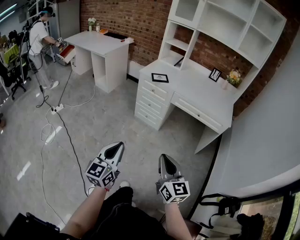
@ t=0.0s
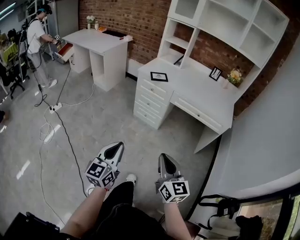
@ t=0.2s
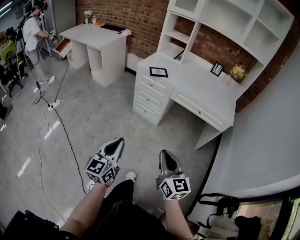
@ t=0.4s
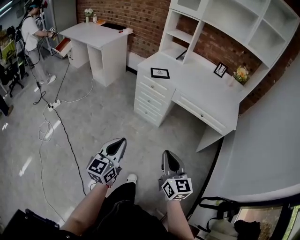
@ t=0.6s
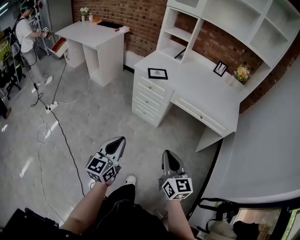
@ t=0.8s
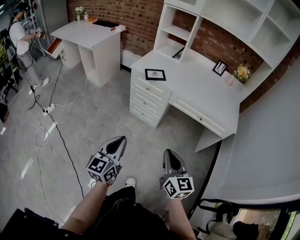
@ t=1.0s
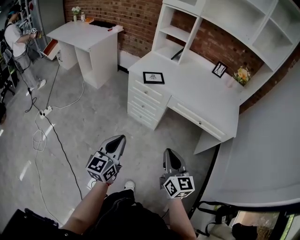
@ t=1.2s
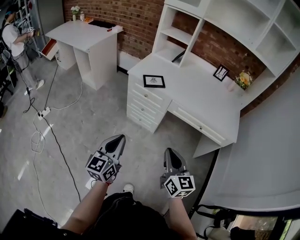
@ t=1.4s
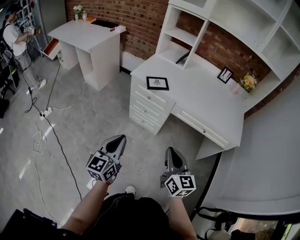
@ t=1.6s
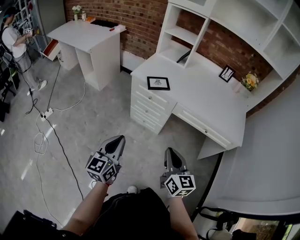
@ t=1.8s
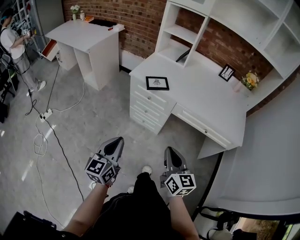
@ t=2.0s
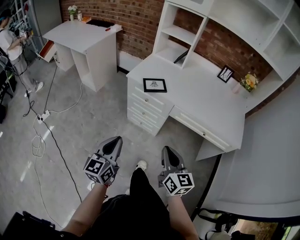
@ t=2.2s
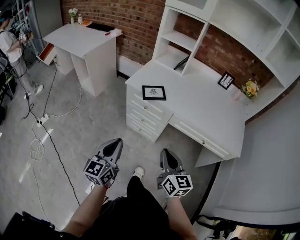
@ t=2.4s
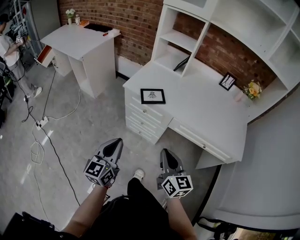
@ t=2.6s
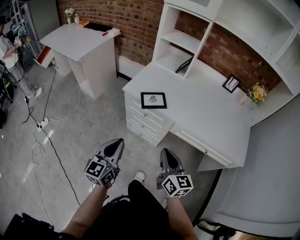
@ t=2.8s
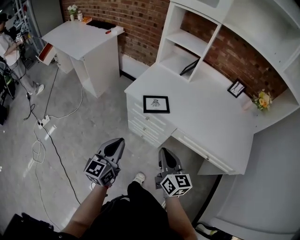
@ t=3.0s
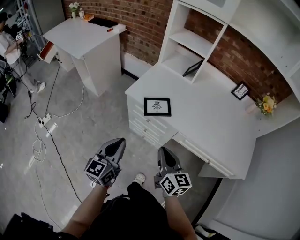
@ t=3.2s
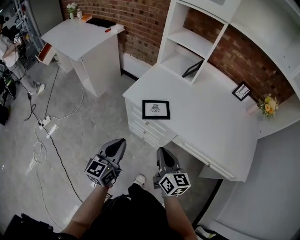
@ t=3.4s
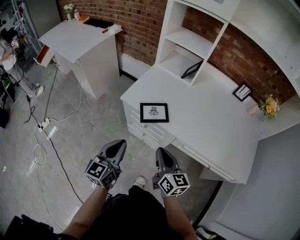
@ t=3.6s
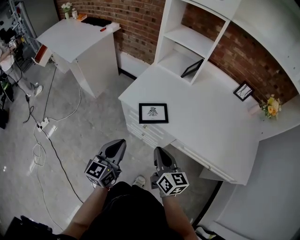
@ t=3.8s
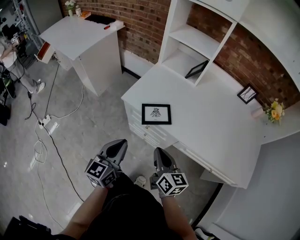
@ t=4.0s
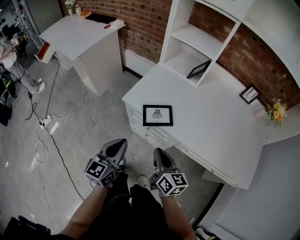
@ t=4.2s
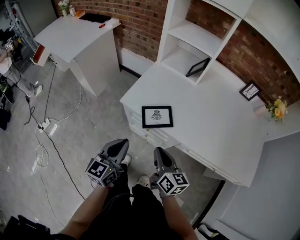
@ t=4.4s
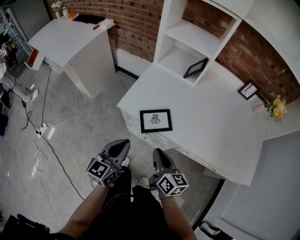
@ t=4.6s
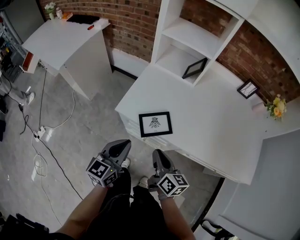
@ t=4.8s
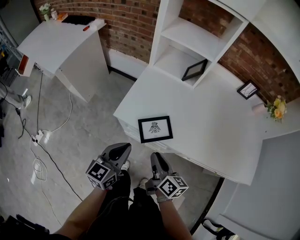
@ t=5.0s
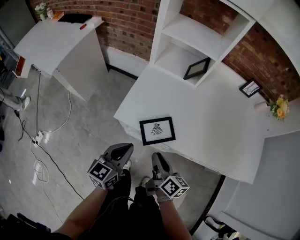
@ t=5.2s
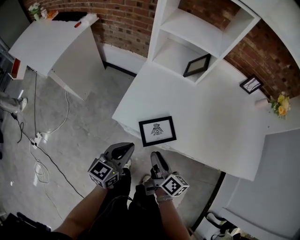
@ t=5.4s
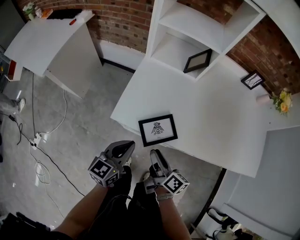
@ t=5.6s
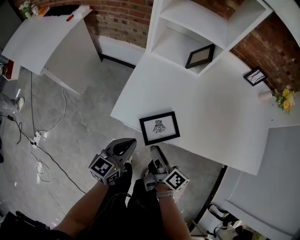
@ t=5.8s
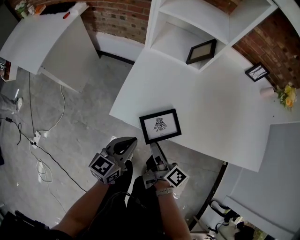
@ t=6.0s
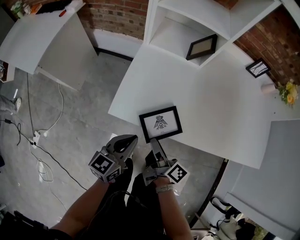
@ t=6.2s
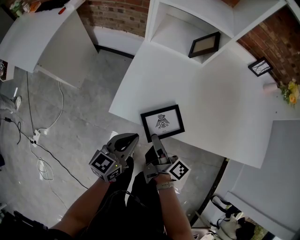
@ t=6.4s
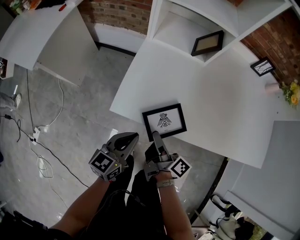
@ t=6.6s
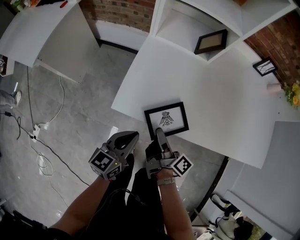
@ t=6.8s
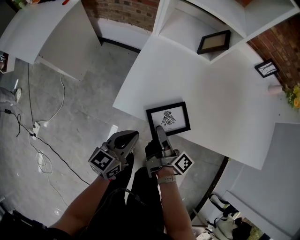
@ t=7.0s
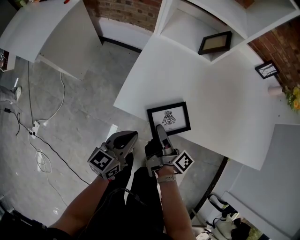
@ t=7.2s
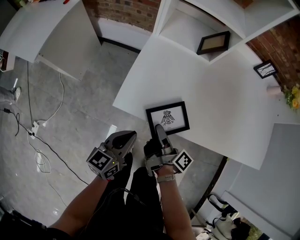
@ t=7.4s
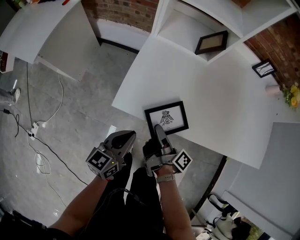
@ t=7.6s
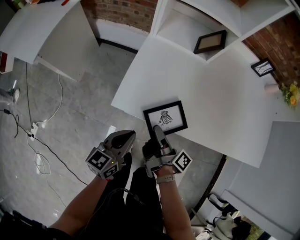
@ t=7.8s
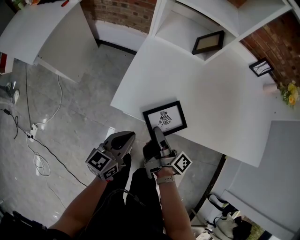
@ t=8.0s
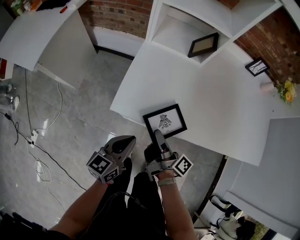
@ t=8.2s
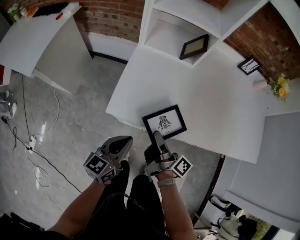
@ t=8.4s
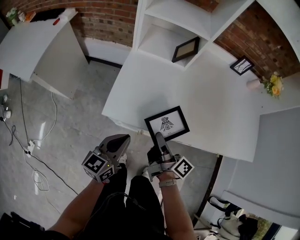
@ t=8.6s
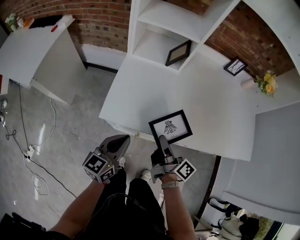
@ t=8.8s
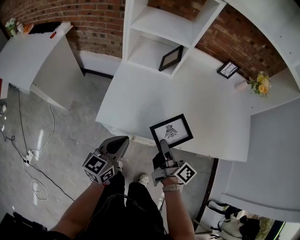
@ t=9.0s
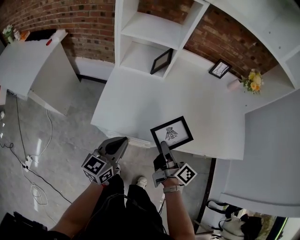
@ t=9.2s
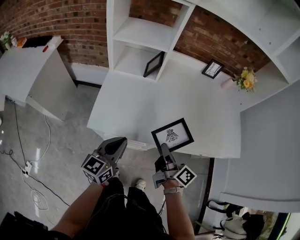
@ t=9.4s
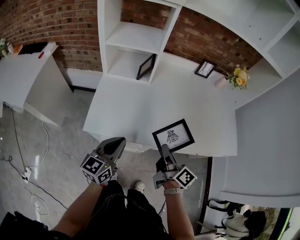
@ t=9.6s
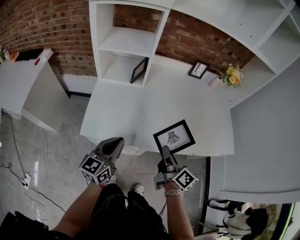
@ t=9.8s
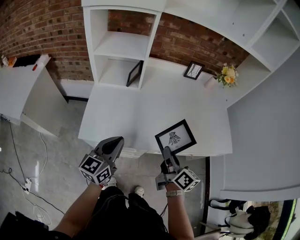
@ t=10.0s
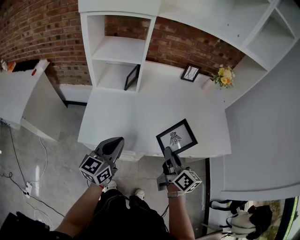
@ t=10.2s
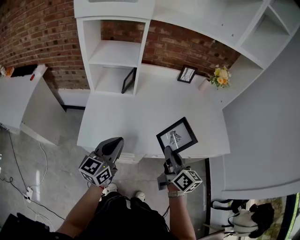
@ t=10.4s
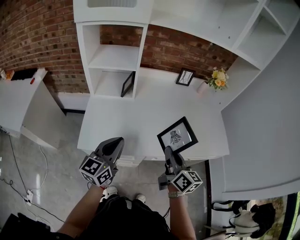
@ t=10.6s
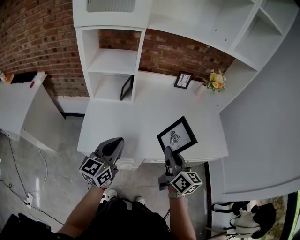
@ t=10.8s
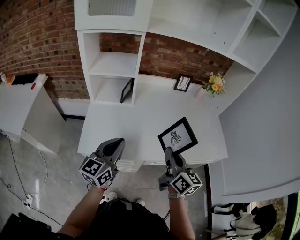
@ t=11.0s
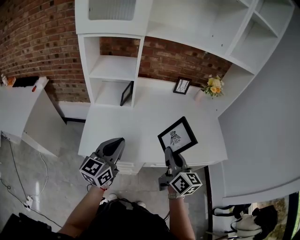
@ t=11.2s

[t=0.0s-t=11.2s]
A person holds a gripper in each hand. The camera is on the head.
t=0.0s to t=1.6s: The two grippers go approximately 30 cm forward.
t=1.6s to t=3.2s: Both grippers move forward, about 20 cm.
t=3.2s to t=4.8s: The left gripper moves forward, approximately 15 cm. The right gripper goes approximately 15 cm forward and downward, and changes its angle by some 20 degrees.
t=4.8s to t=6.4s: The left gripper moves downward and forward, roughly 10 cm. The right gripper moves forward, downward and to the left, some 10 cm, rolls clockwise, seen from behind, by roughly 40 degrees, and opens its fingers.
t=6.4s to t=8.0s: The right gripper closes.
t=8.0s to t=9.6s: The right gripper shifts approximately 25 cm to the right and upward, and swivels approximately 30 degrees, while the left gripper shifts approximately 15 cm upward and to the right.
t=9.6s to t=11.2s: The left gripper shifts approximately 10 cm upward and forward. Meanwhile the right gripper is displaced upward and to the right by some 10 cm, and changes its angle by some 40 degrees.

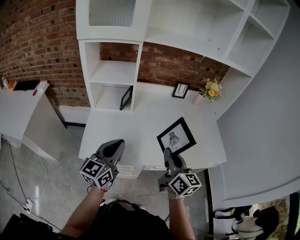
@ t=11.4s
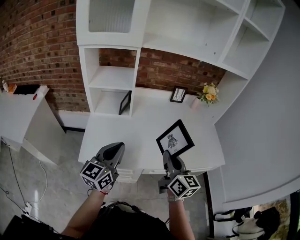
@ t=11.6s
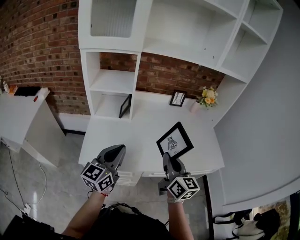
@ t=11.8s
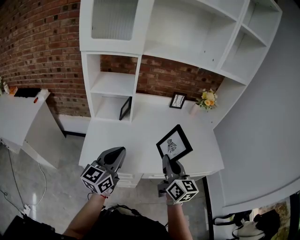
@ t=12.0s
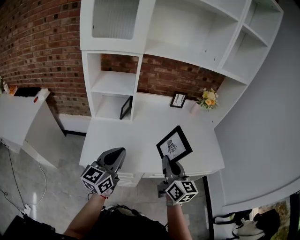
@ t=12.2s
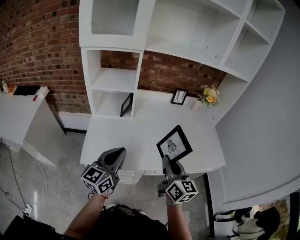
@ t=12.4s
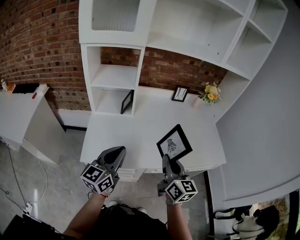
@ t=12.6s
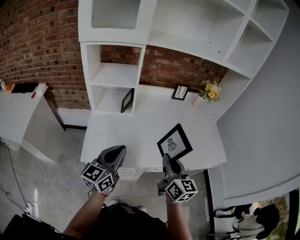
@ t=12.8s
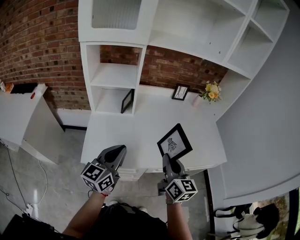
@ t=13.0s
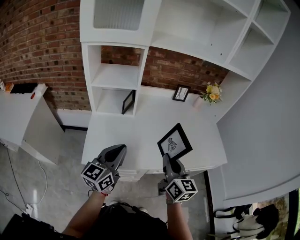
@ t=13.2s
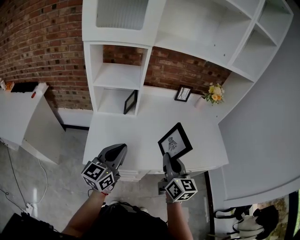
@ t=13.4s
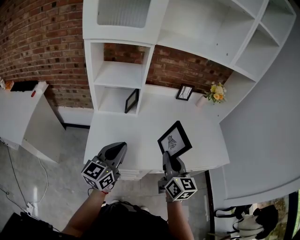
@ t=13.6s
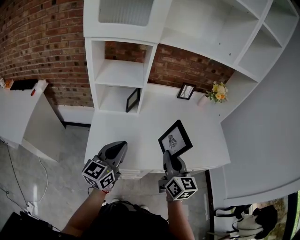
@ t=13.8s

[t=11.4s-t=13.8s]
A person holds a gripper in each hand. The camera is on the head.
t=11.4s to t=12.6s: There are only small adjustments of the grippers.
t=12.6s to t=13.8s: The left gripper shifts by some 5 cm, while the right gripper ends up some 5 cm from where it was.

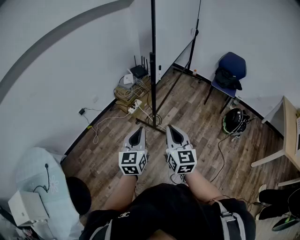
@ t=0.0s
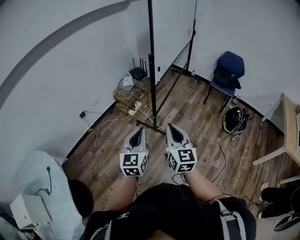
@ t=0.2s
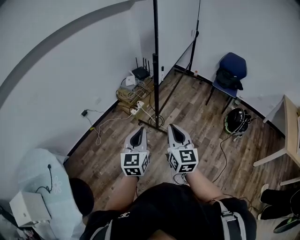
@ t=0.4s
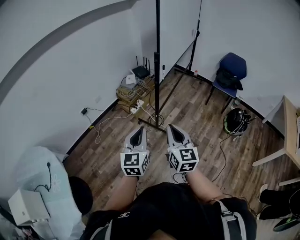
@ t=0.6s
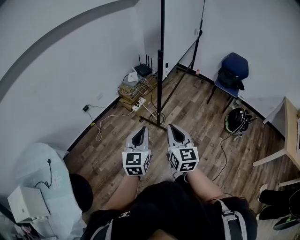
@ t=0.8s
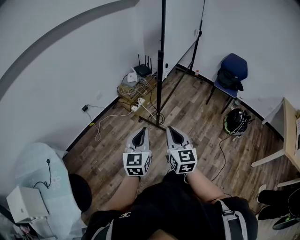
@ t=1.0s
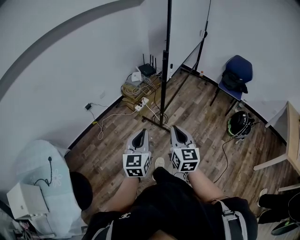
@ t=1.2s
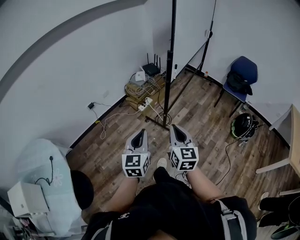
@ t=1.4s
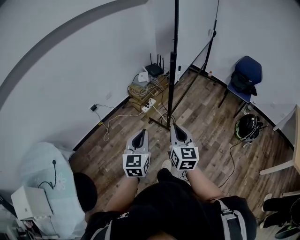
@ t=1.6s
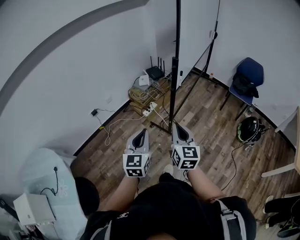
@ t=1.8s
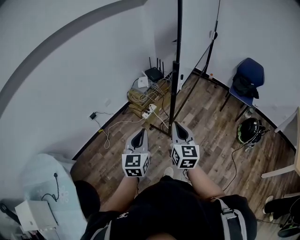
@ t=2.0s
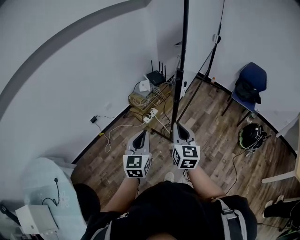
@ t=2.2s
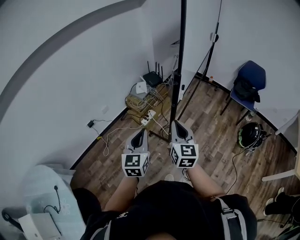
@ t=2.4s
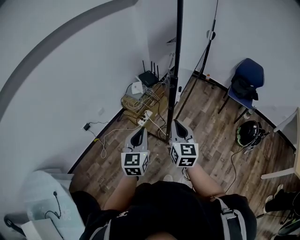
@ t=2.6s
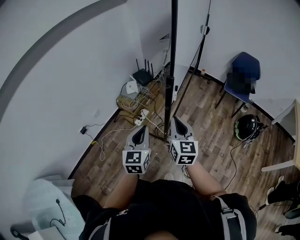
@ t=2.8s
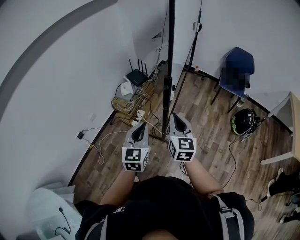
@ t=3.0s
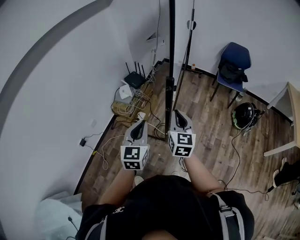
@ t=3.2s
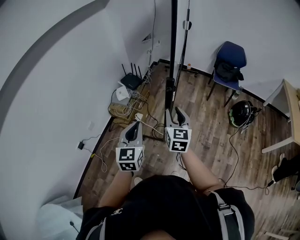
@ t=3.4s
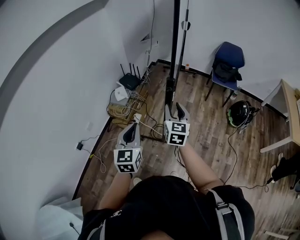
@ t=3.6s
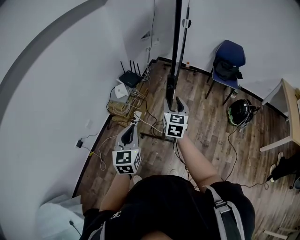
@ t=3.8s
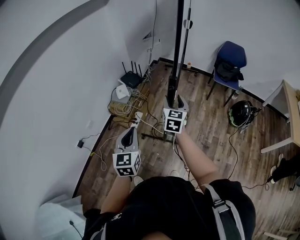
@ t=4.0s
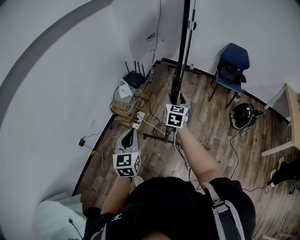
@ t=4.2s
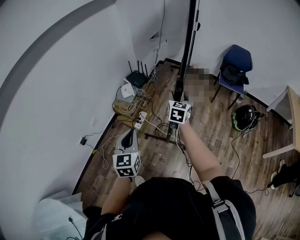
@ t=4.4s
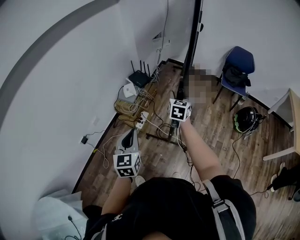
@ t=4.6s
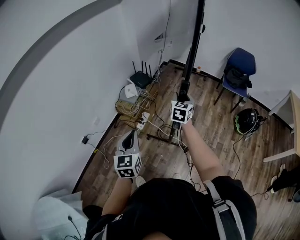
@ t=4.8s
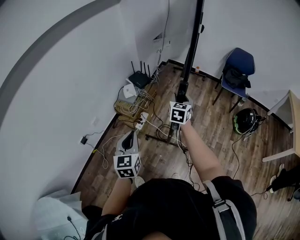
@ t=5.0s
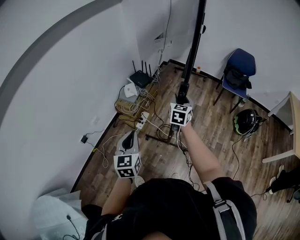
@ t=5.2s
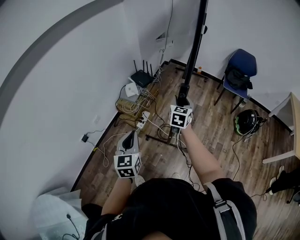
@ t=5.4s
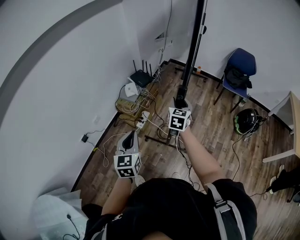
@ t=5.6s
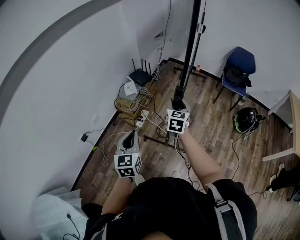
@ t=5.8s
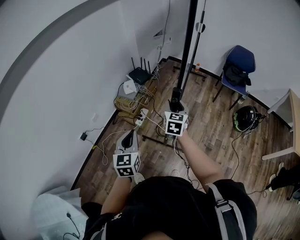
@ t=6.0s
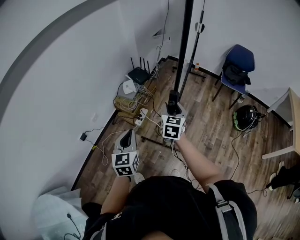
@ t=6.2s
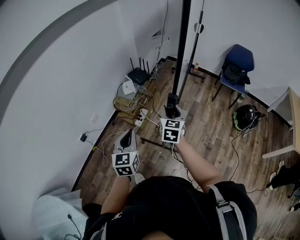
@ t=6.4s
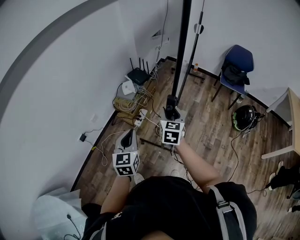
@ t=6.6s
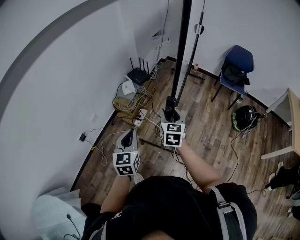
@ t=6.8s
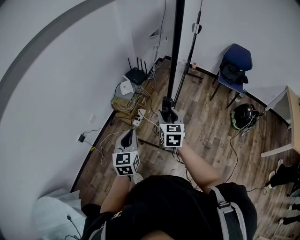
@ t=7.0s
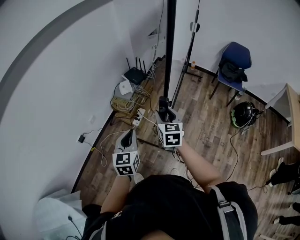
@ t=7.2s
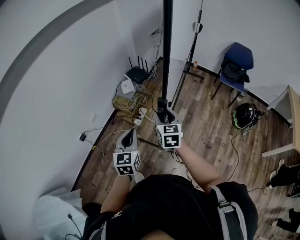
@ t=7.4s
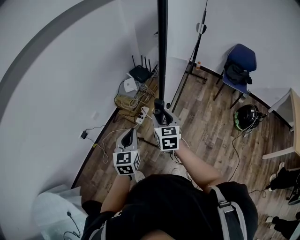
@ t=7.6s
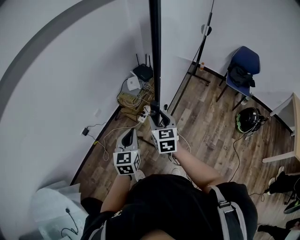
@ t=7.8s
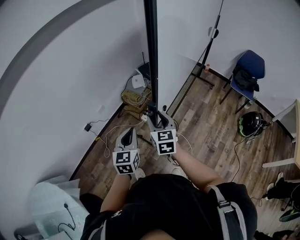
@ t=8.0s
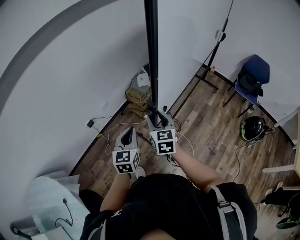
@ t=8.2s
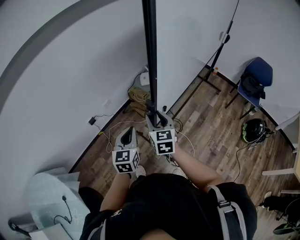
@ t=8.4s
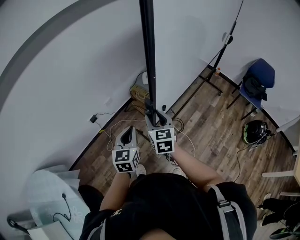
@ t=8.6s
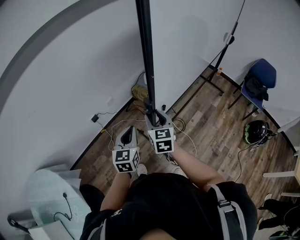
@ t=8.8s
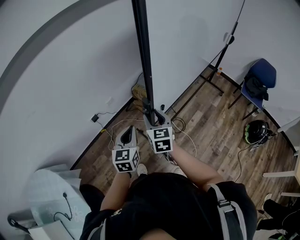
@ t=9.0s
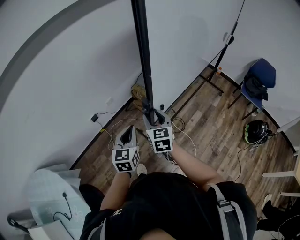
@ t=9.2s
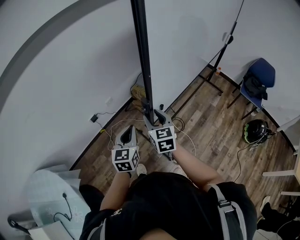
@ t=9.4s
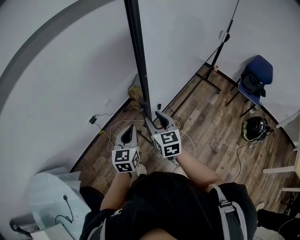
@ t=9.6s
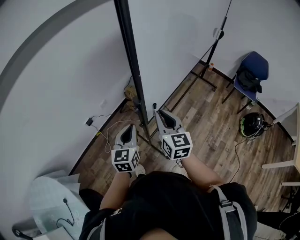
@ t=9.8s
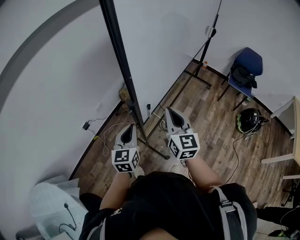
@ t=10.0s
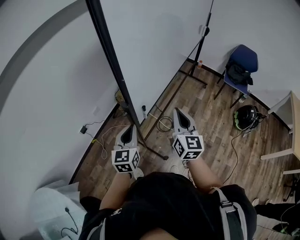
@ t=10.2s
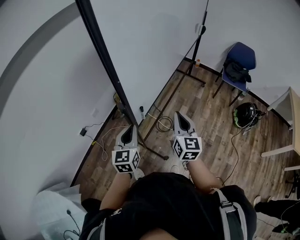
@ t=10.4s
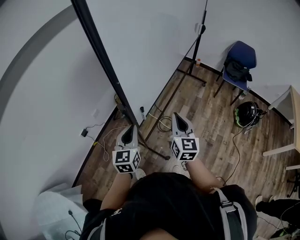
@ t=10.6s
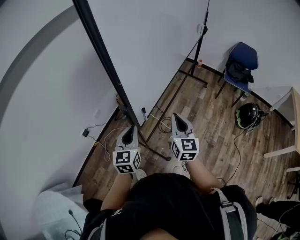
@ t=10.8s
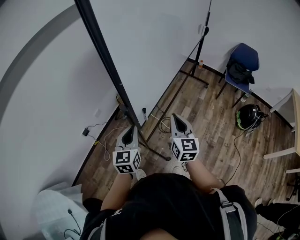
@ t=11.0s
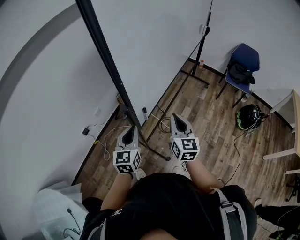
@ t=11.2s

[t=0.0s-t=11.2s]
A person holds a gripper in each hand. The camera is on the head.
t=0.0s to t=1.6s: The right gripper goes some 10 cm to the left and forward, while the left gripper moves to the left, about 5 cm.
t=1.6s to t=3.2s: Both grippers move forward, about 30 cm. The right gripper swivels approximately 20 degrees.
t=3.2s to t=4.8s: The left gripper goes approximately 10 cm to the left. The right gripper travels forward by approximately 15 cm, and opens.
t=4.8s to t=6.4s: The right gripper travels backward and to the left by some 10 cm.
t=6.4s to t=8.0s: The right gripper travels to the left and backward by about 15 cm, and turns by roughly 20 degrees.
t=8.0s to t=9.6s: The right gripper moves to the left, some 5 cm.
t=9.6s to t=11.2s: The right gripper moves to the right, some 15 cm, changes its angle by some 20 degrees, and closes its fingers, while the left gripper heads to the right, covering about 5 cm.
